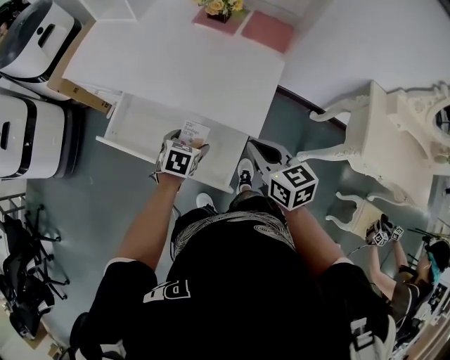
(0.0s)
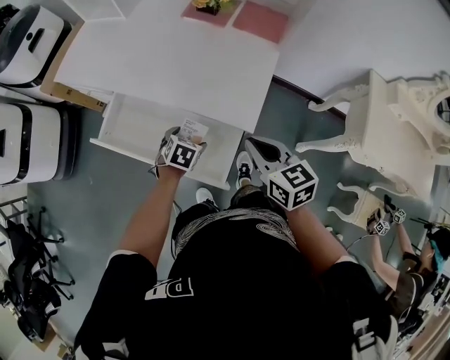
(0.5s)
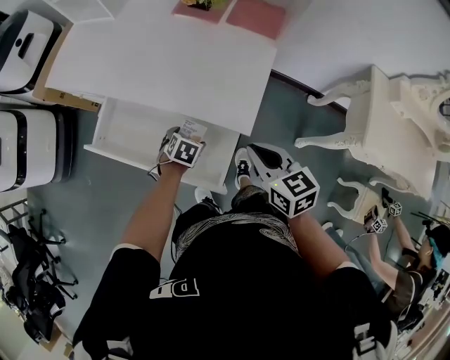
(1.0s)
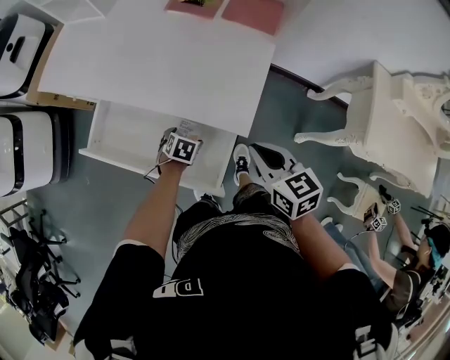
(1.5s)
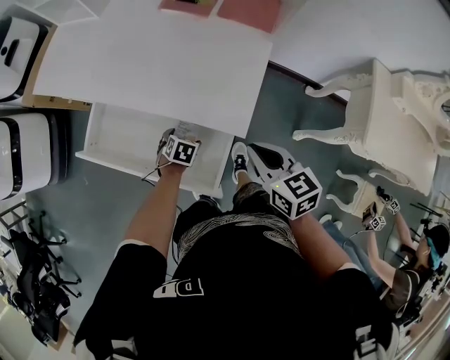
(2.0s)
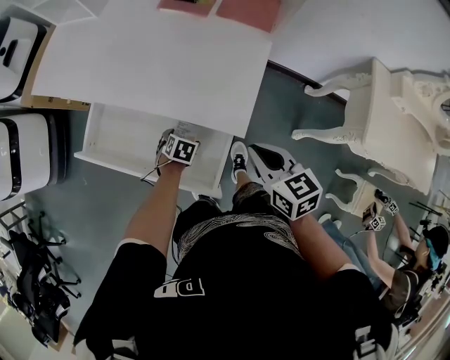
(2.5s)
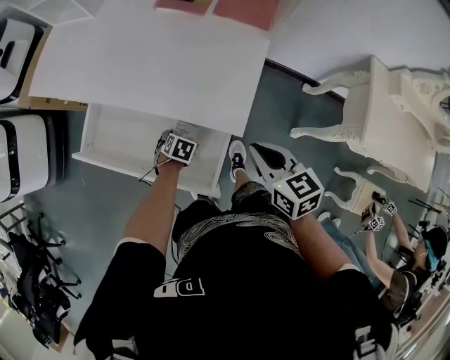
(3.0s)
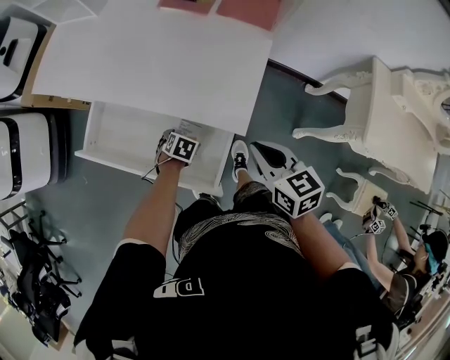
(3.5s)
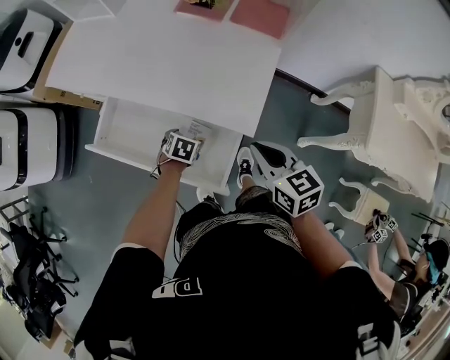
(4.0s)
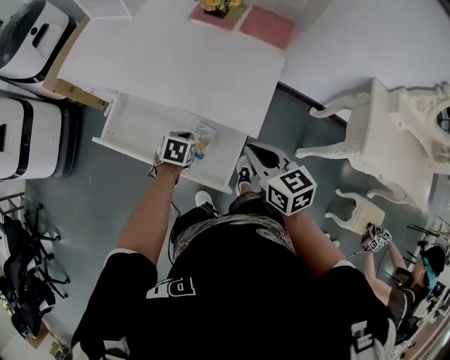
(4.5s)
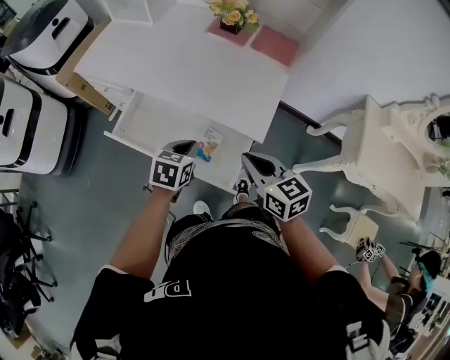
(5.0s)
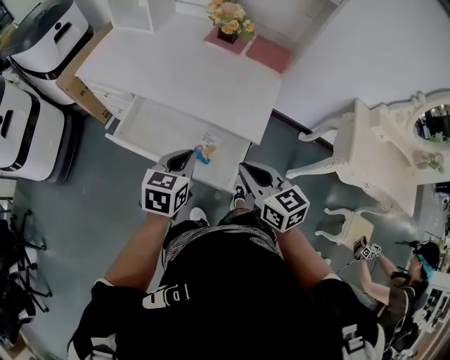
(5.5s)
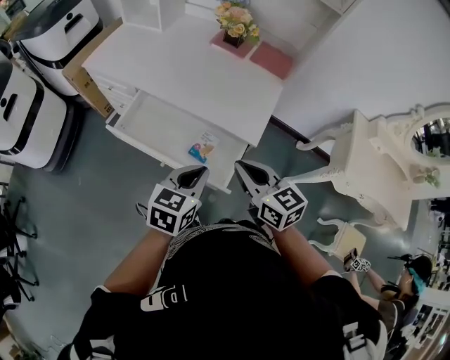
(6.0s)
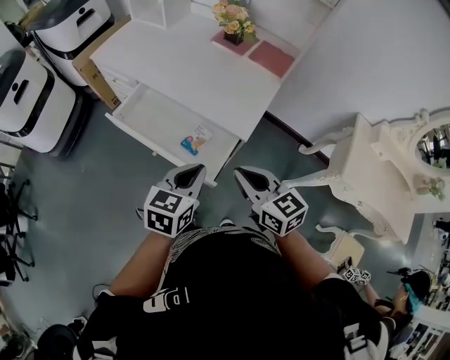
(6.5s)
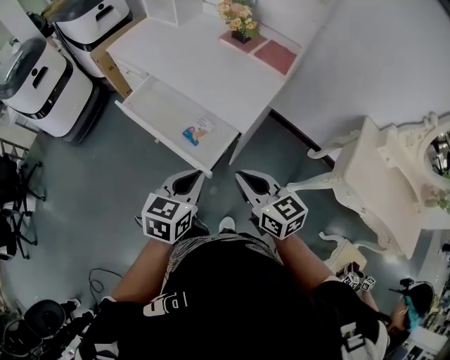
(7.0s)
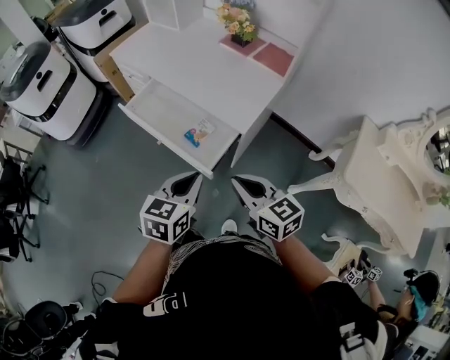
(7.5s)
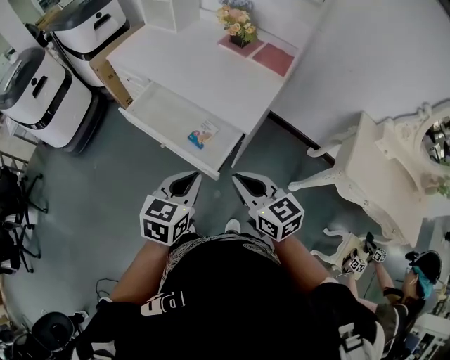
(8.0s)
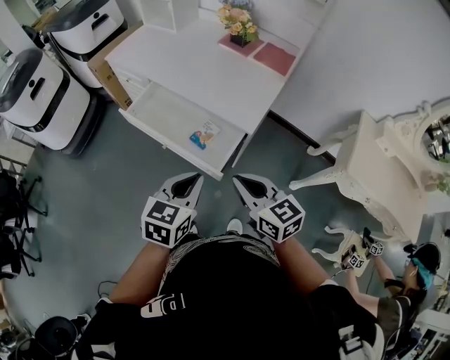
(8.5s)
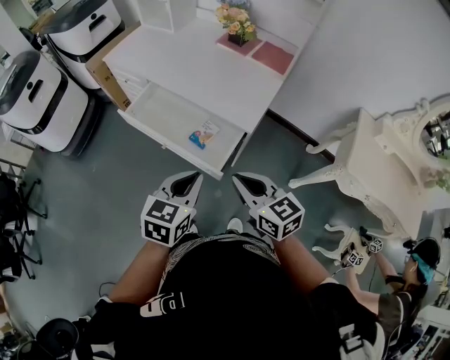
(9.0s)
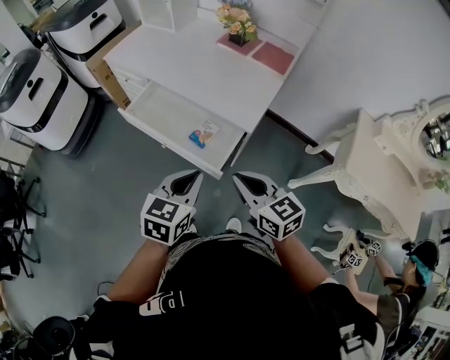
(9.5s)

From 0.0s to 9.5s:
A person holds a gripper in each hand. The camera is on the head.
From 0.0s to 2.0s: The left gripper moves downward, some 15 cm; the right gripper travels to the right by some 5 cm.
From 2.0s to 4.0s: The grippers stay close to where they were, moving slightly.
From 4.0s to 5.5s: The left gripper heads upward, covering roughly 30 cm, points its fingers some 40 degrees further upward, and closes; the right gripper moves to the left, backward and upward, approximately 15 cm.
From 5.5s to 7.5s: The two grippers go about 20 cm backward and to the right.
From 7.5s to 9.5s: Both grippers travel together to the left, approximately 5 cm.

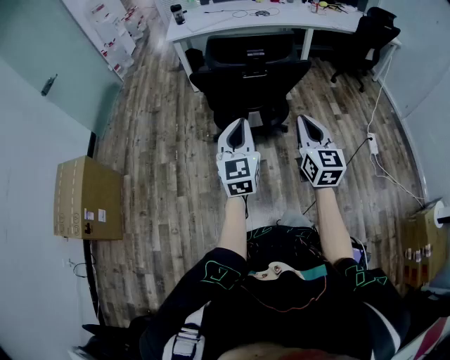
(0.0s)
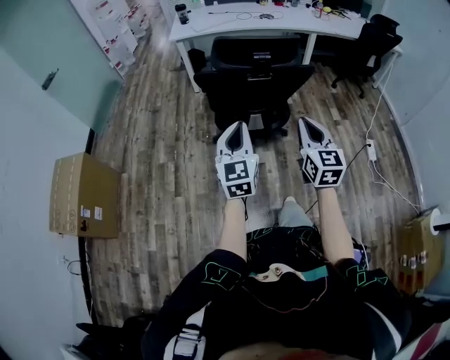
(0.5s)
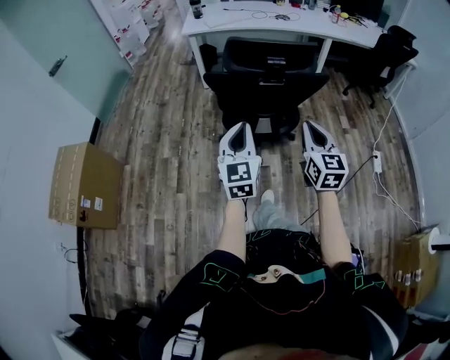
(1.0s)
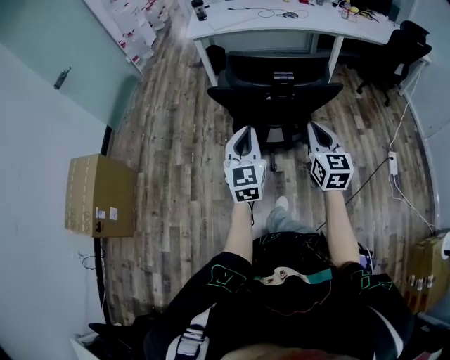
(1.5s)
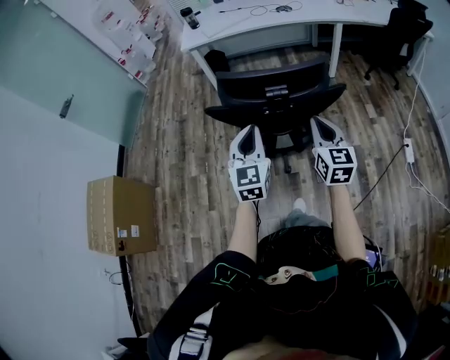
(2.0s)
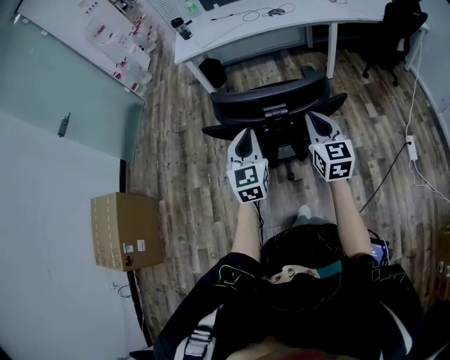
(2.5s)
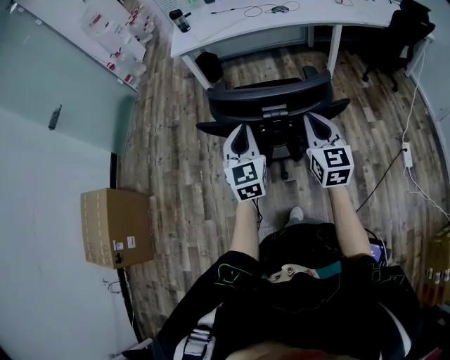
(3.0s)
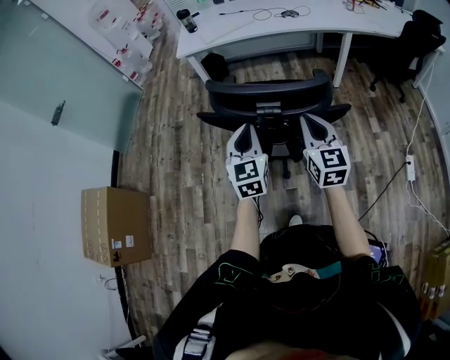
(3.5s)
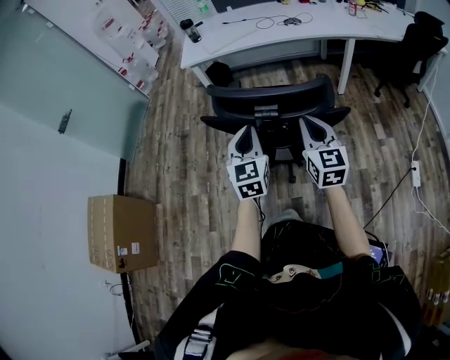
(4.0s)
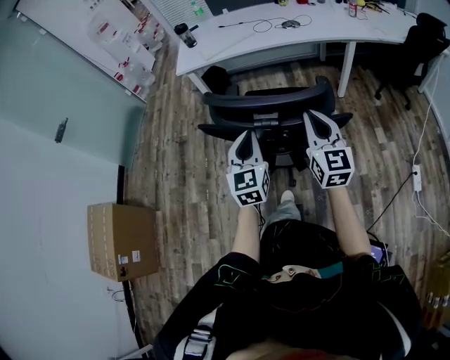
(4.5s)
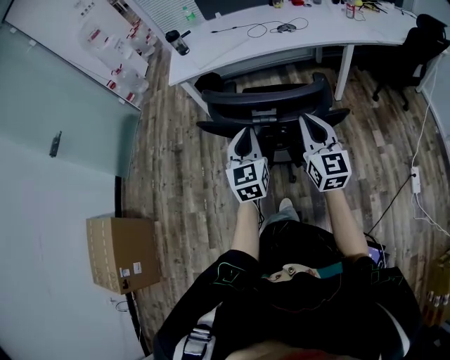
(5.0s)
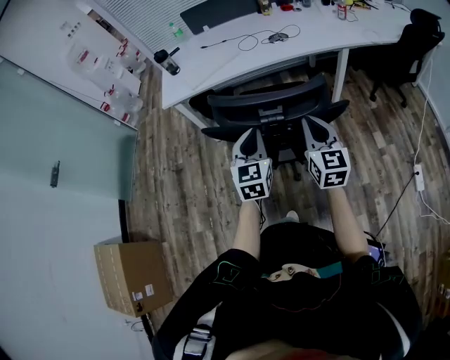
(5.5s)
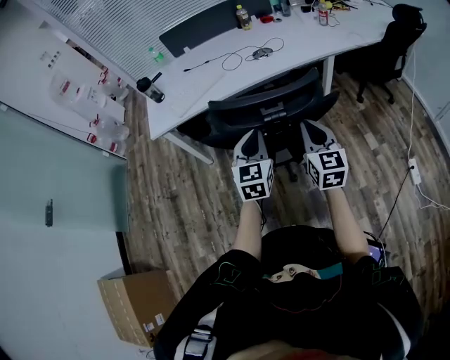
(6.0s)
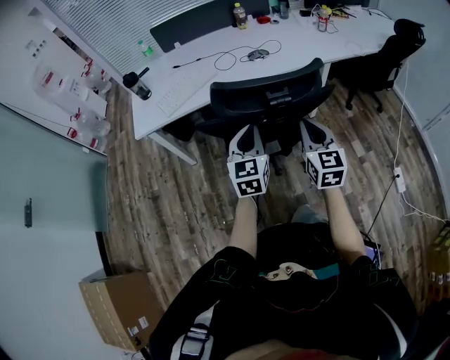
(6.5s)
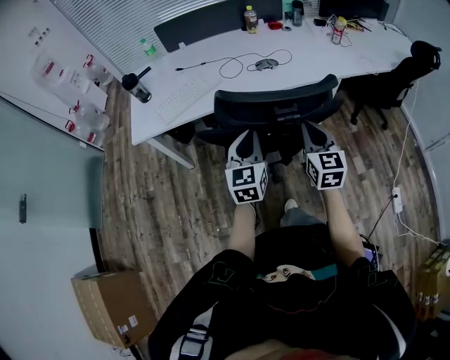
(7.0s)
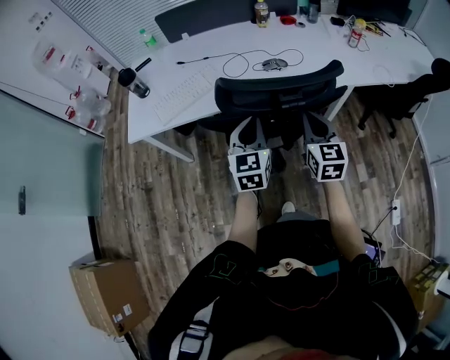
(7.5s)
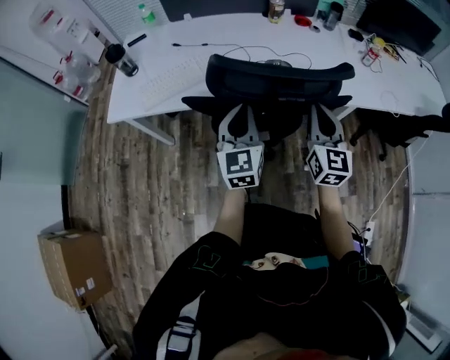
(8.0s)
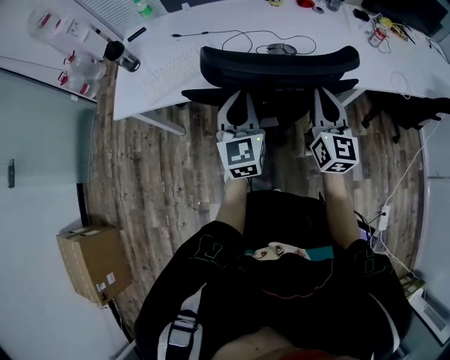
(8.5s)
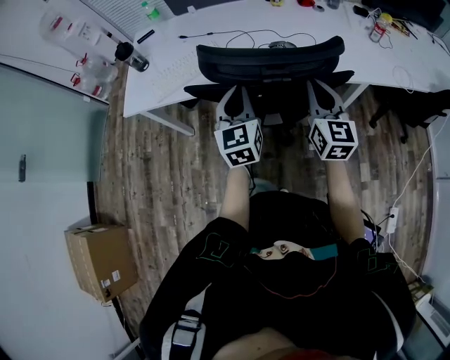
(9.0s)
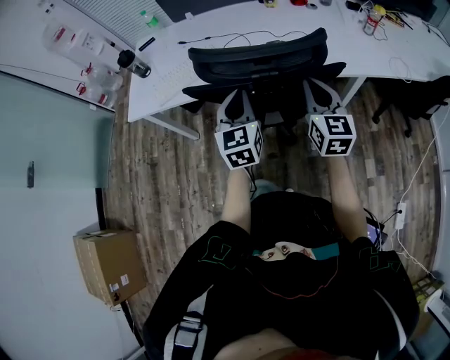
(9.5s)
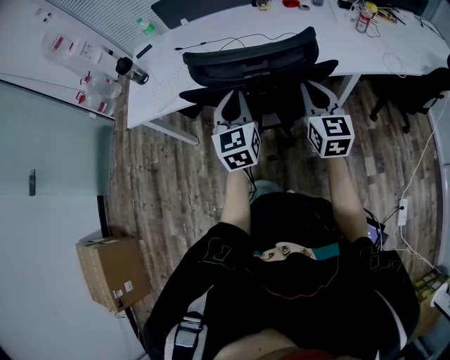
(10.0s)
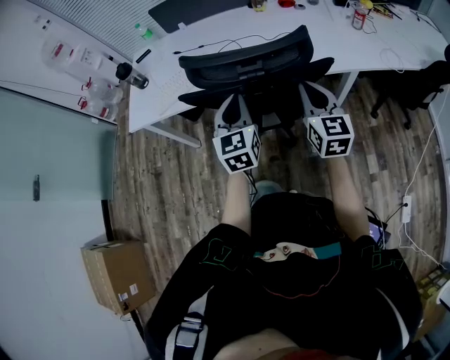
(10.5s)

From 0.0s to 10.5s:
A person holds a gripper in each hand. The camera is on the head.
From 0.0s to 2.0s: The two grippers go roughly 20 cm forward.
From 2.0s to 4.0s: The grippers both shift forward by approximately 15 cm.
From 4.0s to 6.5s: The grippers both shift forward by some 35 cm.
From 6.5s to 8.5s: The two grippers go some 30 cm forward.
From 8.5s to 10.5s: The grippers both shift backward by some 5 cm.

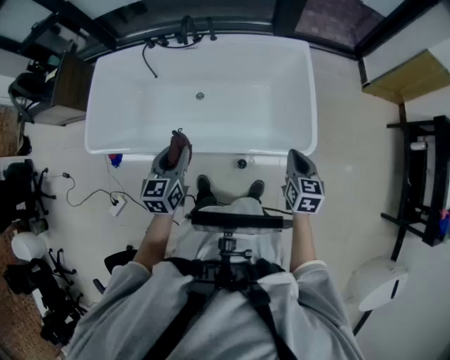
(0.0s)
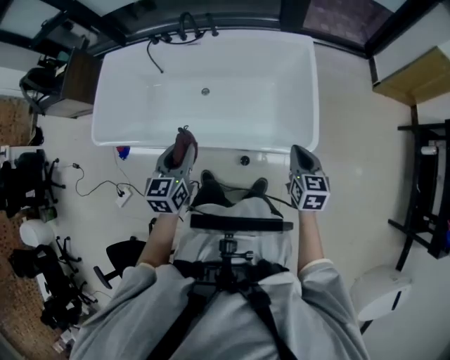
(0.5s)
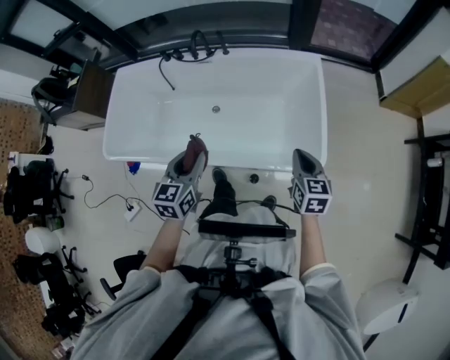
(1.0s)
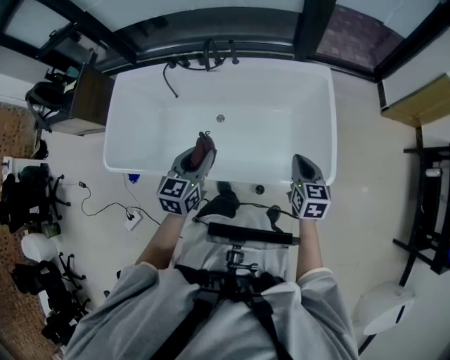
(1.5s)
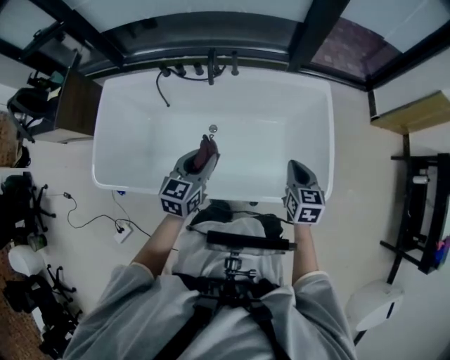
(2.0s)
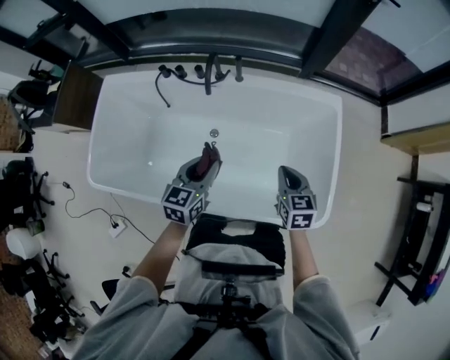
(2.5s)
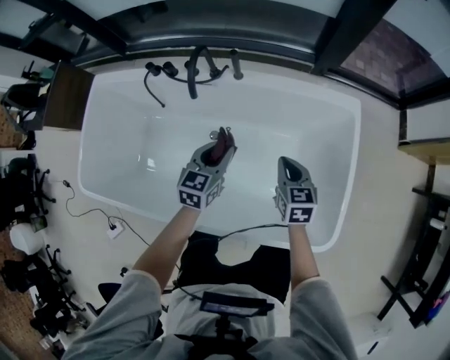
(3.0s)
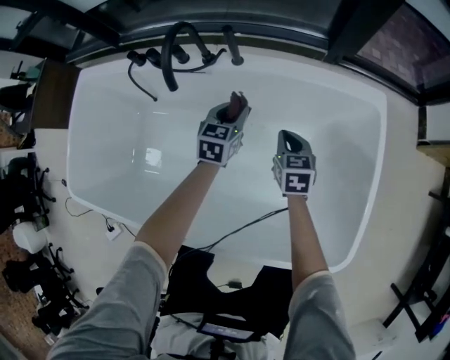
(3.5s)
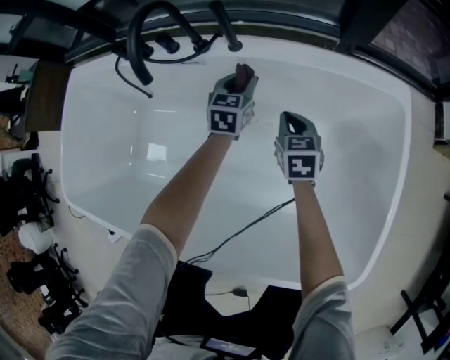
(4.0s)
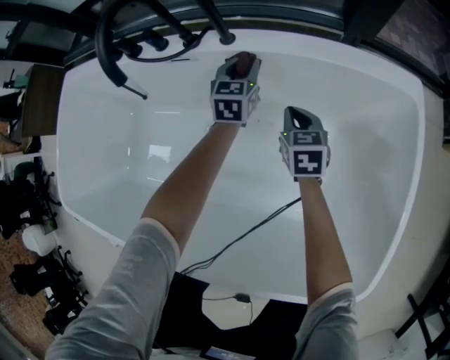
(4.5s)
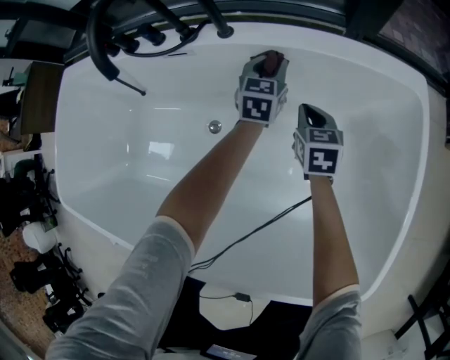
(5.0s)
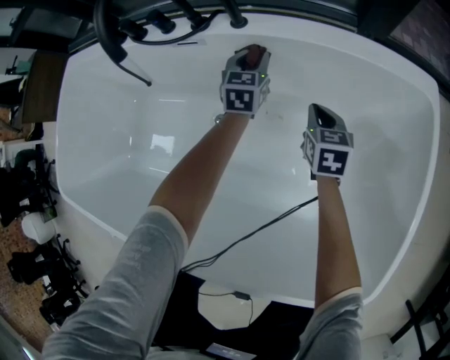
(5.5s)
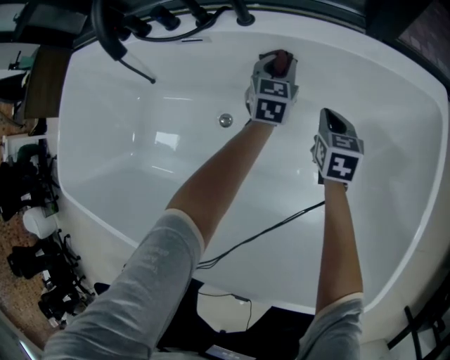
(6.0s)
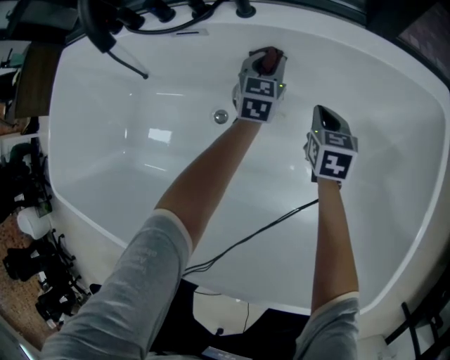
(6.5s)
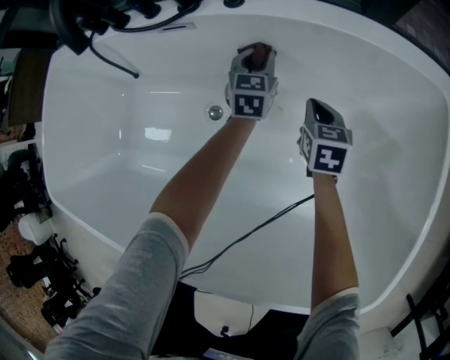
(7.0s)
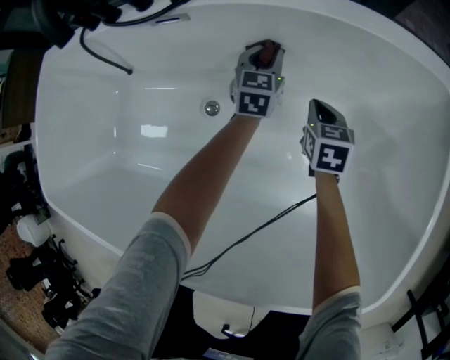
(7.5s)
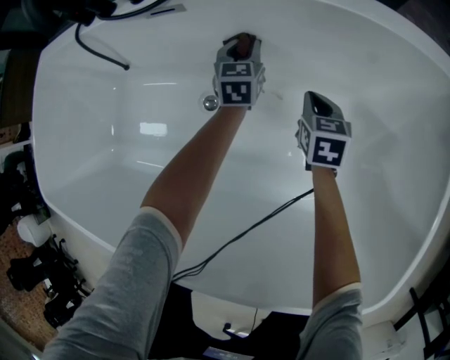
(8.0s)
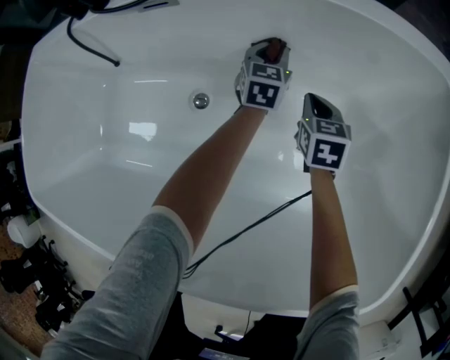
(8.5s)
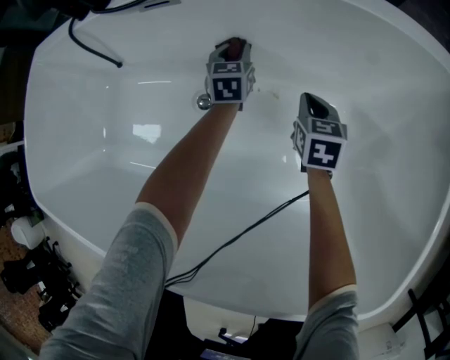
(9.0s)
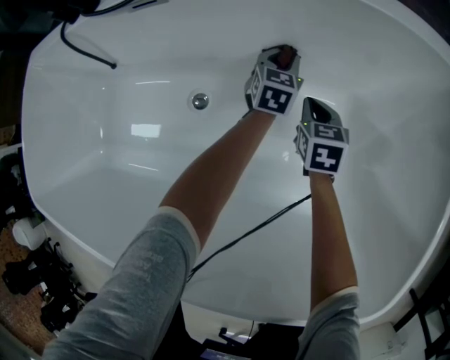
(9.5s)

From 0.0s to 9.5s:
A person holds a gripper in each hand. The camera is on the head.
From 0.0s to 2.0s: The left gripper moves forward, about 20 cm. Meanwhile the right gripper heads forward and to the left, covering approximately 25 cm.
From 2.0s to 4.0s: The left gripper travels forward and downward by some 60 cm, while the right gripper heads downward and forward, covering about 50 cm.
From 4.0s to 5.5s: The grippers both shift downward by some 5 cm. The left gripper goes to the right and returns, about 10 cm each way.
From 5.5s to 7.5s: Both grippers move downward, some 10 cm.
From 7.5s to 9.5s: The left gripper goes left and right, approximately 15 cm each way, reversing 3 times. The right gripper travels downward by roughly 5 cm.
